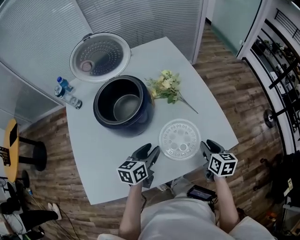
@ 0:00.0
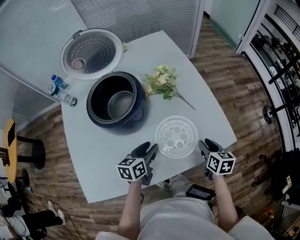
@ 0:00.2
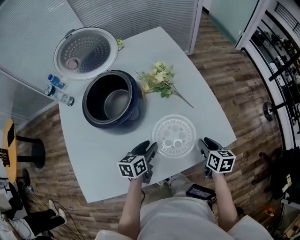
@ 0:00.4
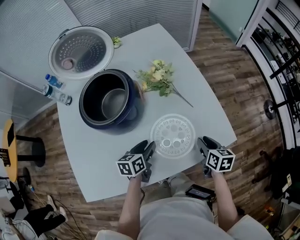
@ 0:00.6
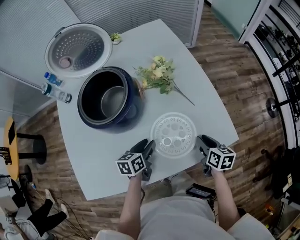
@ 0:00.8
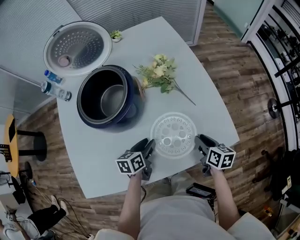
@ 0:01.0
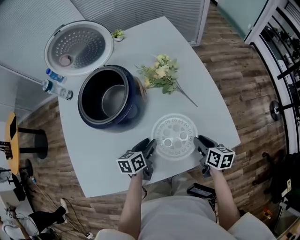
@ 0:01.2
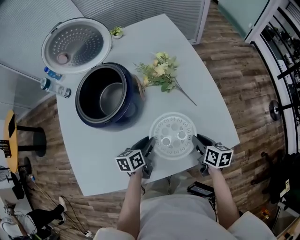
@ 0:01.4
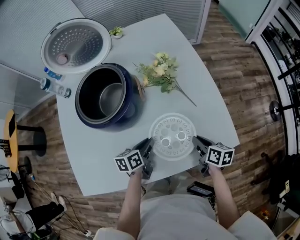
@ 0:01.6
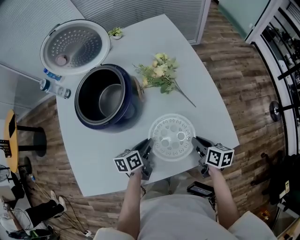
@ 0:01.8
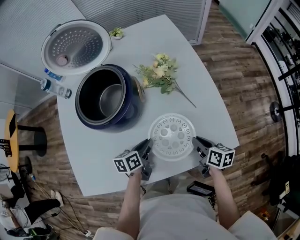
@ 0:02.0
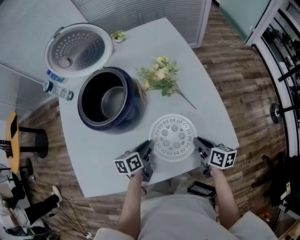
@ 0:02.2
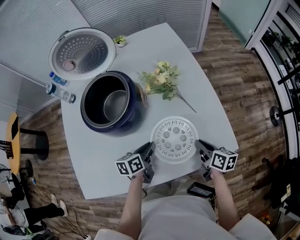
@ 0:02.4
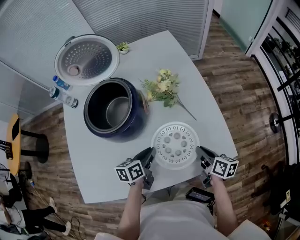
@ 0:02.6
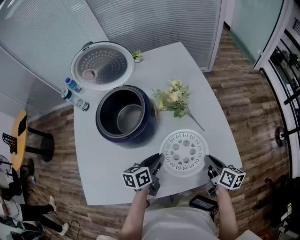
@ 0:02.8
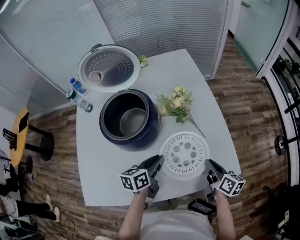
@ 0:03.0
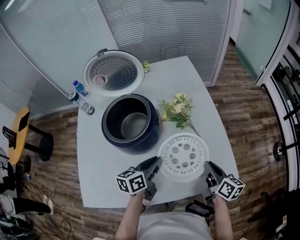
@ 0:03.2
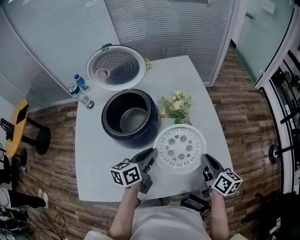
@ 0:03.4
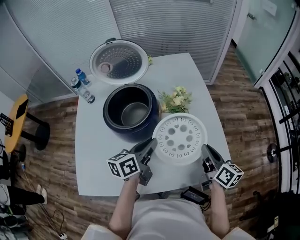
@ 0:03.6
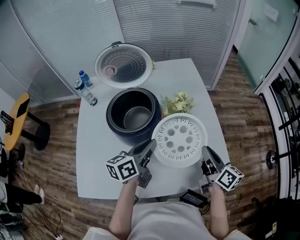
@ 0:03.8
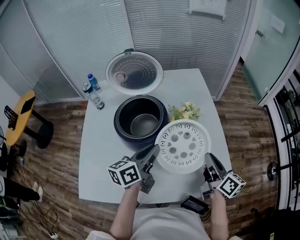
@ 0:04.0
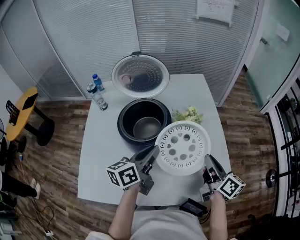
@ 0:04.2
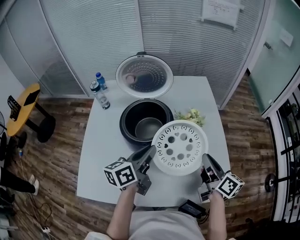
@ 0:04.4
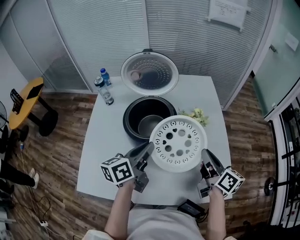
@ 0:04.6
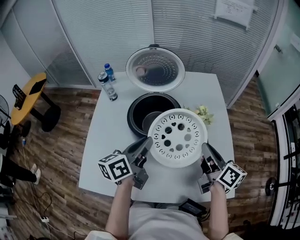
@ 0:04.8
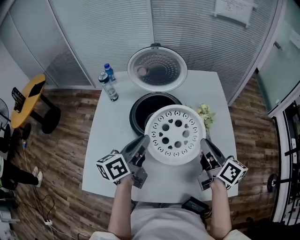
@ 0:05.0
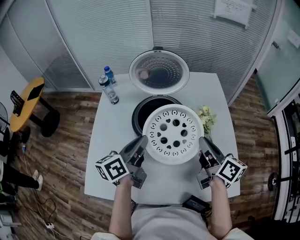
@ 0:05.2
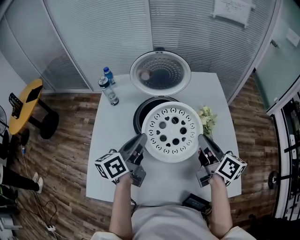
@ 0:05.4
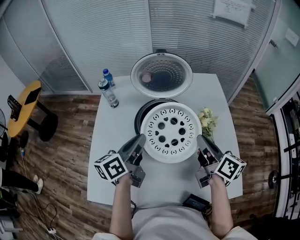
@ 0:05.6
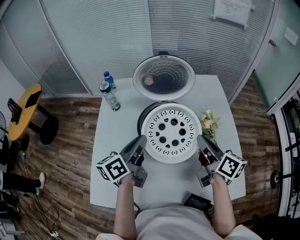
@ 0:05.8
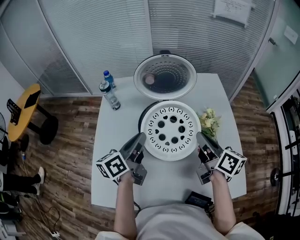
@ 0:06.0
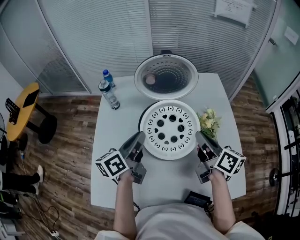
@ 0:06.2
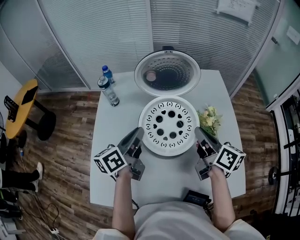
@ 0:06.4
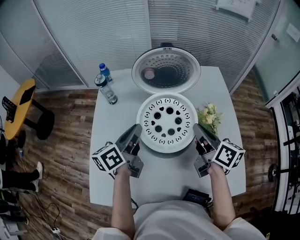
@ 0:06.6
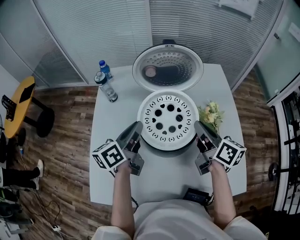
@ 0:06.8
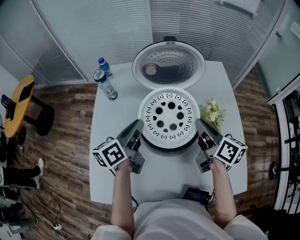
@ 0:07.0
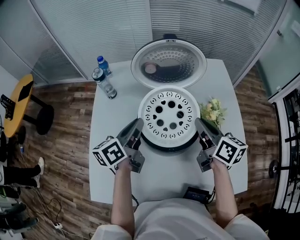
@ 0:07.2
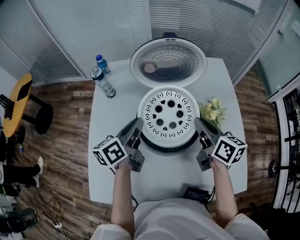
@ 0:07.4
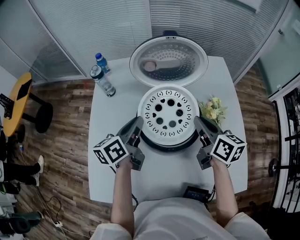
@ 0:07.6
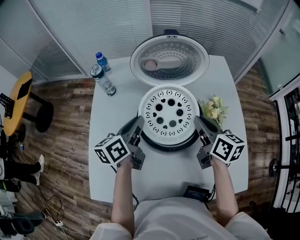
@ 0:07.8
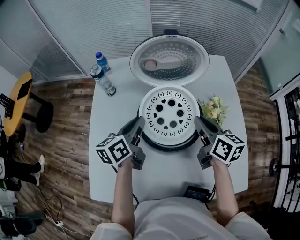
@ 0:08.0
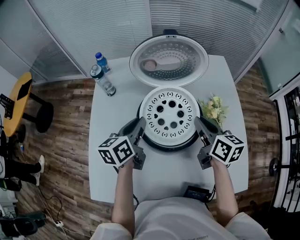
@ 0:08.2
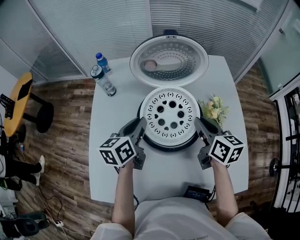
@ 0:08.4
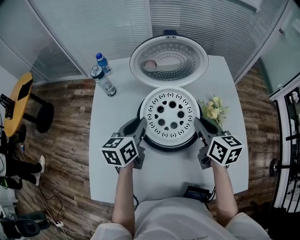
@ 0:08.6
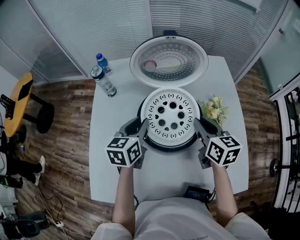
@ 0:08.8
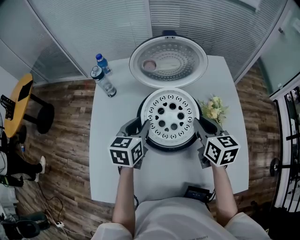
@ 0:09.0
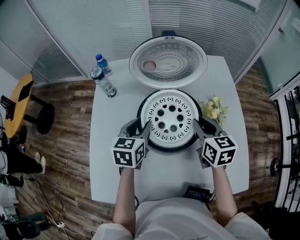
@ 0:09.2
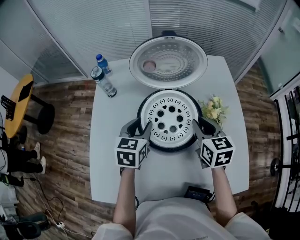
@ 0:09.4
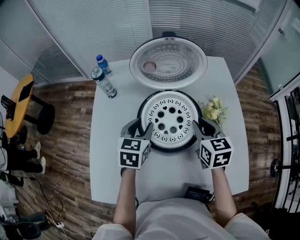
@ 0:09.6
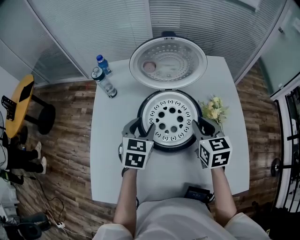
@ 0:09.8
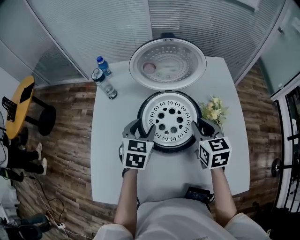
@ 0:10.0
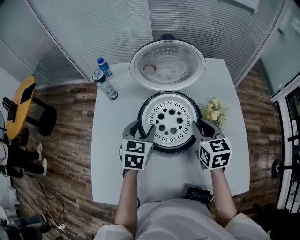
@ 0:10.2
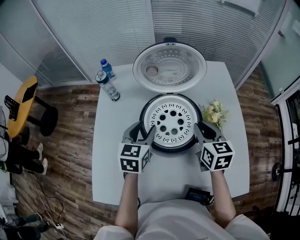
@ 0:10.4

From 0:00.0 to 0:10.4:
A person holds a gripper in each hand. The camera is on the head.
From 0:00.0 to 0:01.4: The grippers both shift downward by roughly 10 cm.
From 0:01.4 to 0:03.0: The two grippers go about 10 cm upward. The left gripper closes up.
From 0:03.0 to 0:04.4: The right gripper heads upward, to the left and forward, covering about 20 cm; the left gripper goes roughly 15 cm upward and to the left, and rotates approximately 20 degrees.
From 0:04.4 to 0:06.0: The grippers both shift to the left and forward by some 20 cm.
From 0:06.0 to 0:07.4: The left gripper shifts by roughly 5 cm, while the right gripper moves approximately 5 cm.
From 0:07.4 to 0:09.0: The right gripper swivels some 20 degrees. The left gripper changes its angle by about 30 degrees.
From 0:09.0 to 0:10.4: The left gripper opens its fingers.

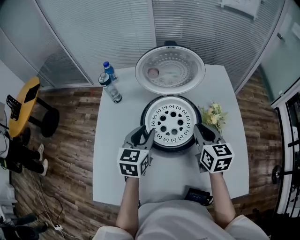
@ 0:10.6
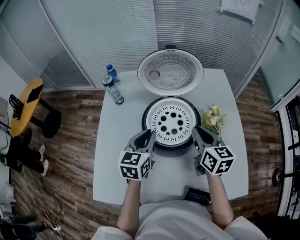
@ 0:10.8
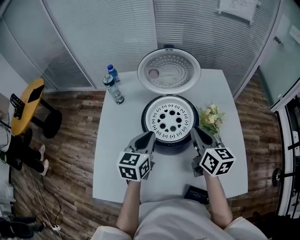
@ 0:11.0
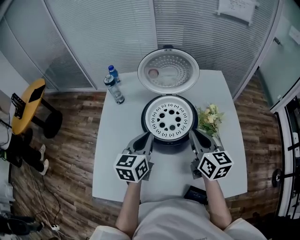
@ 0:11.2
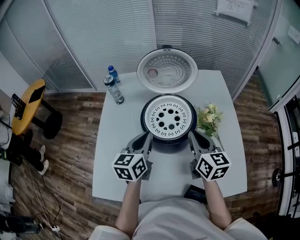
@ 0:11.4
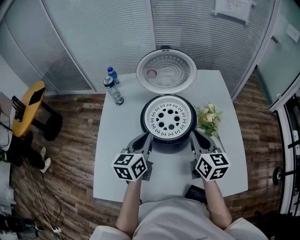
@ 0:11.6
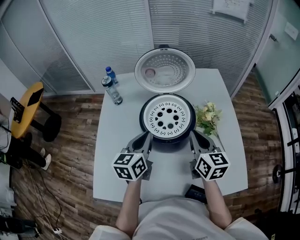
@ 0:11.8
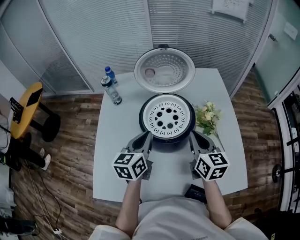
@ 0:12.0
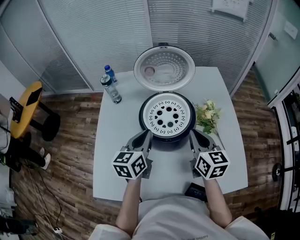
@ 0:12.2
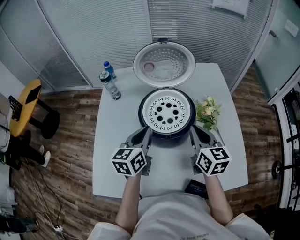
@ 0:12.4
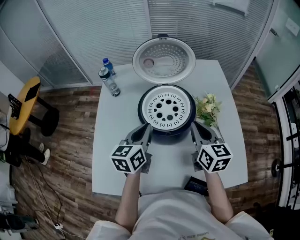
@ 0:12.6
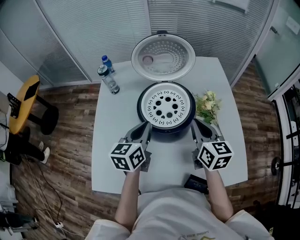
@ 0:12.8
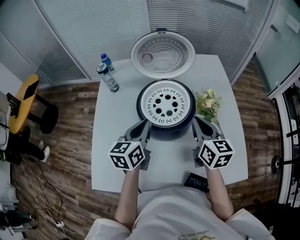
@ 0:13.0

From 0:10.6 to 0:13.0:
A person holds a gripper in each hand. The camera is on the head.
From 0:10.6 to 0:11.8: Both grippers travel together backward, approximately 5 cm. The left gripper closes up.
From 0:11.8 to 0:13.0: The grippers make only small movements.

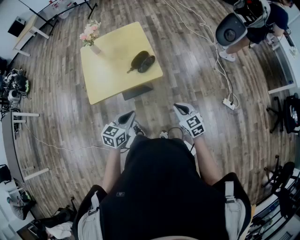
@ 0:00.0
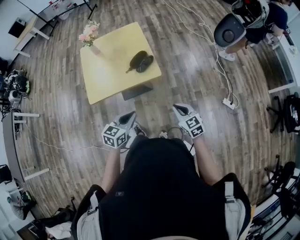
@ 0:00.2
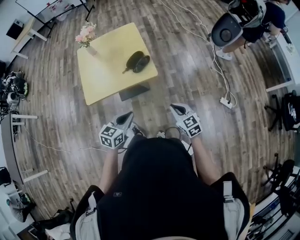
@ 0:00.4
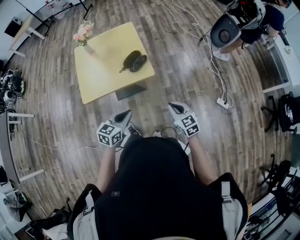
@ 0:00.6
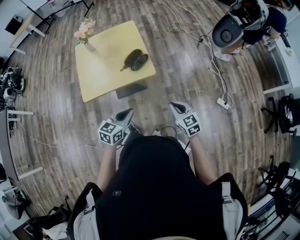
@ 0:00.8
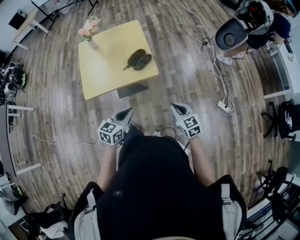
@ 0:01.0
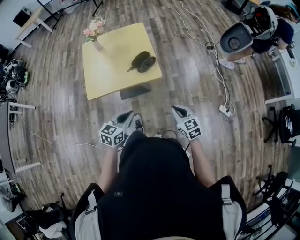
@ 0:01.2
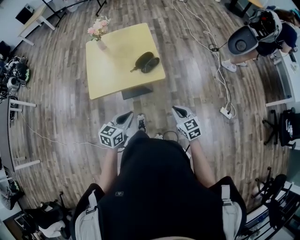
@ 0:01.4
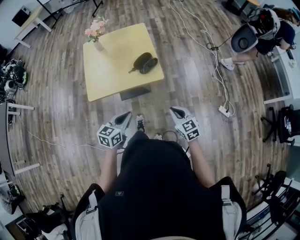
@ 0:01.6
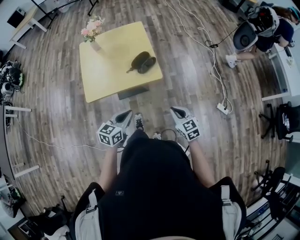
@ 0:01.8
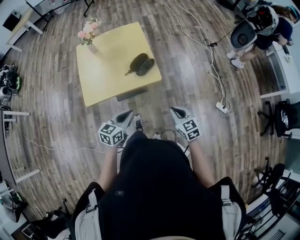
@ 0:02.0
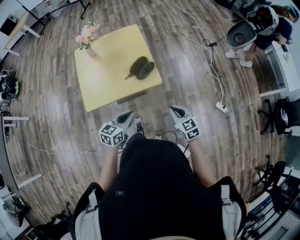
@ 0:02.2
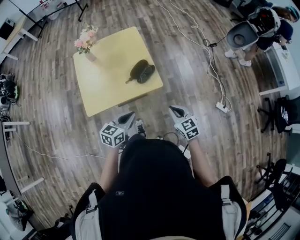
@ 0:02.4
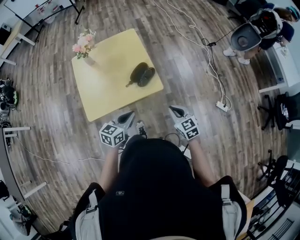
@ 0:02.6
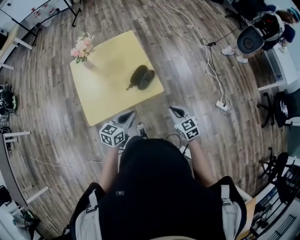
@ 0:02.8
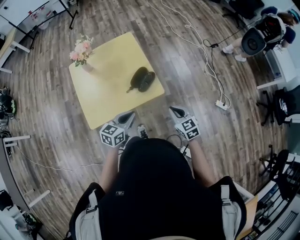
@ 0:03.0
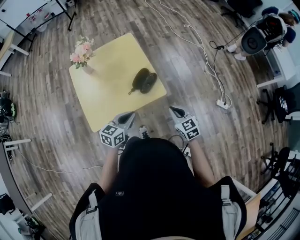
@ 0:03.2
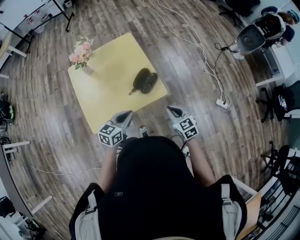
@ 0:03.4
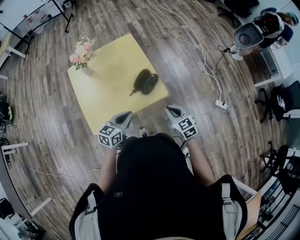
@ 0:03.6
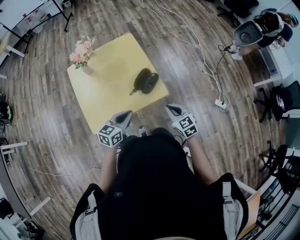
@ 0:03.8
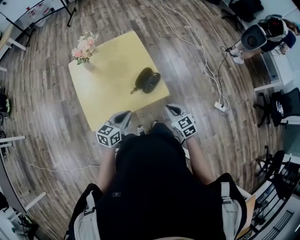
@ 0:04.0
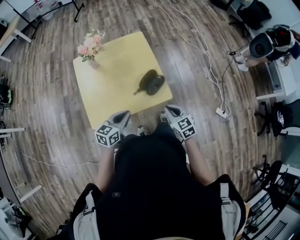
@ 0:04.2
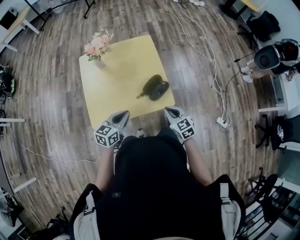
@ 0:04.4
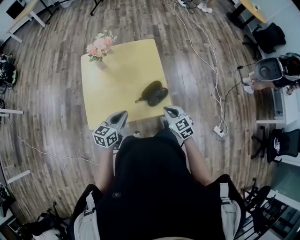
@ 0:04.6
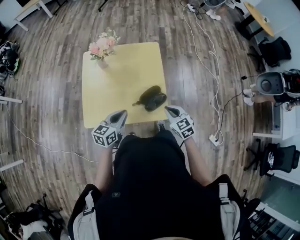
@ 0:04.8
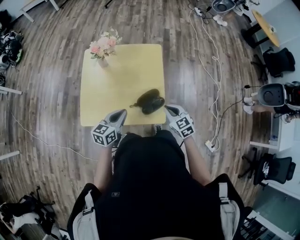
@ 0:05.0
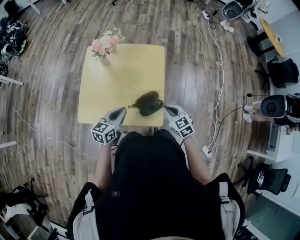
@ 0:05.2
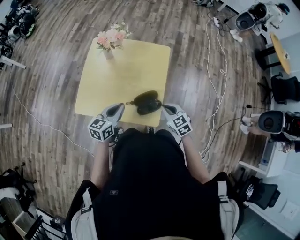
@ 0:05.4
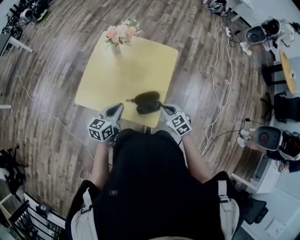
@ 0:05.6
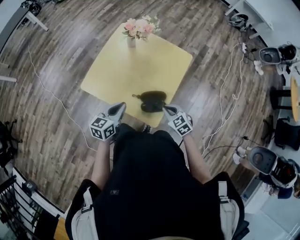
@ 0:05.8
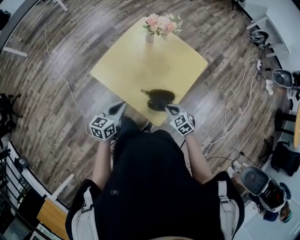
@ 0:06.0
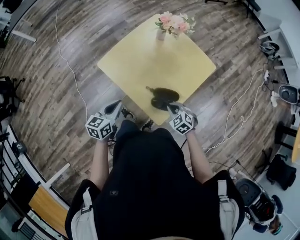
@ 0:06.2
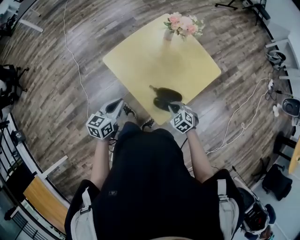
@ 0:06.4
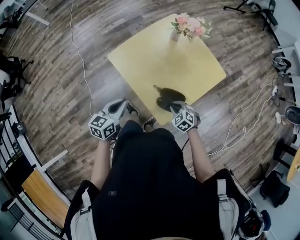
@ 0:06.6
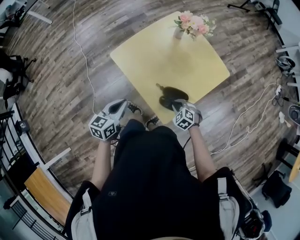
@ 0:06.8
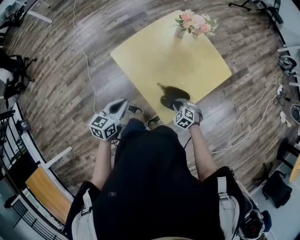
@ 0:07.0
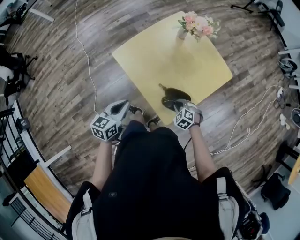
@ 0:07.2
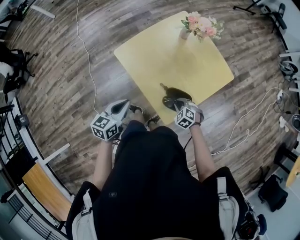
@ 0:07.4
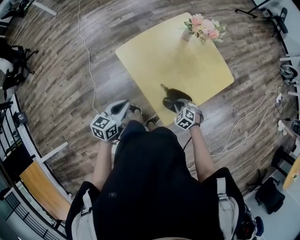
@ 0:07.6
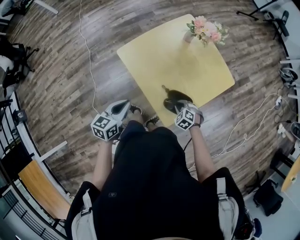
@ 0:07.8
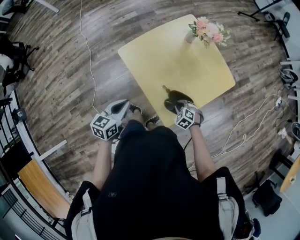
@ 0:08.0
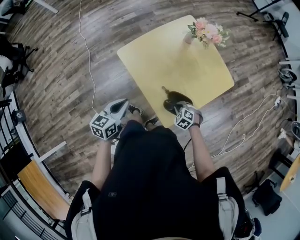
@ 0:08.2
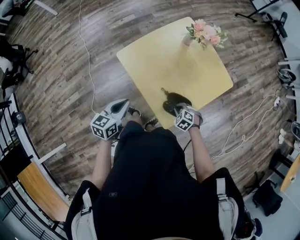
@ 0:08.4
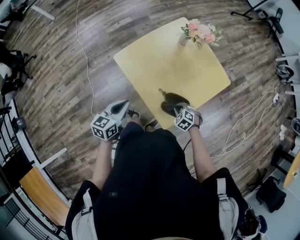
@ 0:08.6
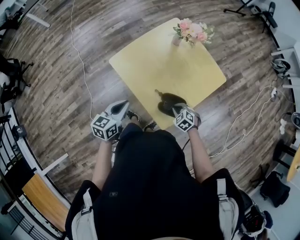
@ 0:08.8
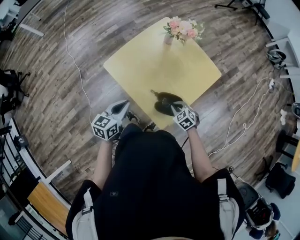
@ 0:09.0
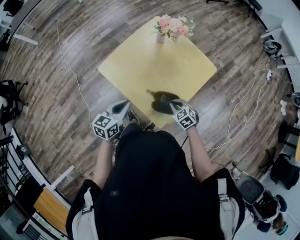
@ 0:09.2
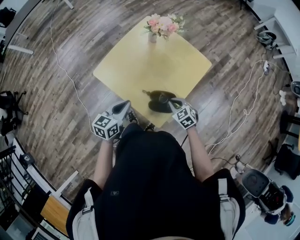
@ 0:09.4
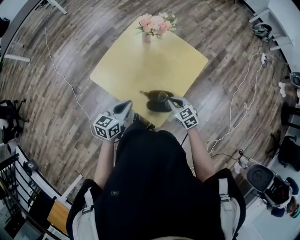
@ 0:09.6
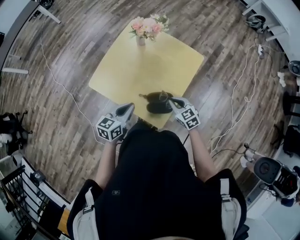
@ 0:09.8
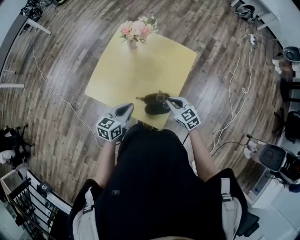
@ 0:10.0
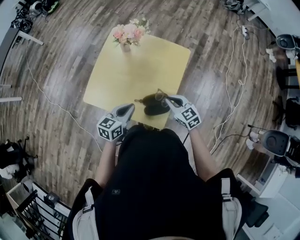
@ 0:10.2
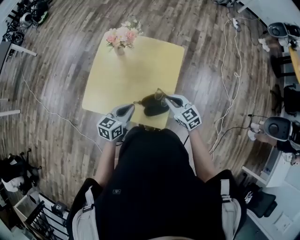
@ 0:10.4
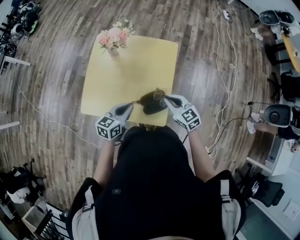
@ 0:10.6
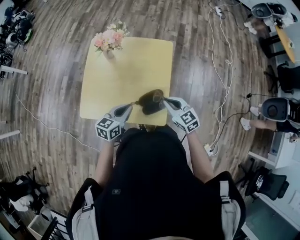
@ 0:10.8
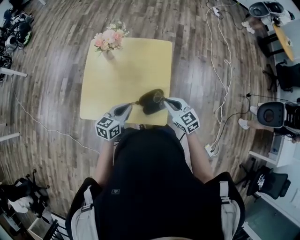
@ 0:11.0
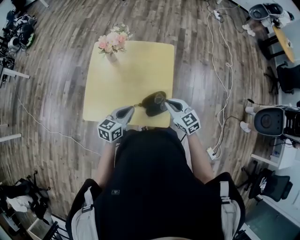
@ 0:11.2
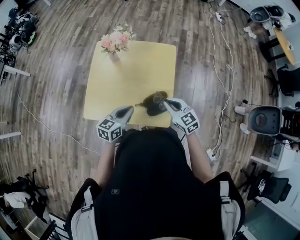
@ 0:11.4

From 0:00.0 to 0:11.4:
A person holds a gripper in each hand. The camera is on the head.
From 0:00.0 to 0:01.4: The grippers stay close to where they were, moving slightly.
From 0:01.4 to 0:02.8: The right gripper moves forward and to the left, some 15 cm. Meanwhile the left gripper is displaced forward by about 15 cm.
From 0:02.8 to 0:04.2: The left gripper shifts approximately 10 cm to the left. Meanwhile the right gripper shifts approximately 10 cm to the left and forward.
From 0:04.2 to 0:05.6: The left gripper changes place by about 10 cm, and swivels about 40 degrees. The right gripper ends up about 20 cm from where it was, and changes its angle by roughly 40 degrees.
From 0:05.6 to 0:07.2: The right gripper heads downward, covering some 15 cm, and twists about 50 degrees counterclockwise, seen from behind. Meanwhile the left gripper ends up about 15 cm from where it was, and rotates approximately 30 degrees.
From 0:07.2 to 0:08.6: The grippers move only a little.
From 0:08.6 to 0:10.0: The left gripper ends up roughly 15 cm from where it was, and turns by roughly 30 degrees; the right gripper goes roughly 15 cm upward, and tilts its fingers about 30 degrees upward.
From 0:10.0 to 0:11.4: The left gripper turns by some 20 degrees. Meanwhile the right gripper ends up some 5 cm from where it was, and turns by some 20 degrees.
